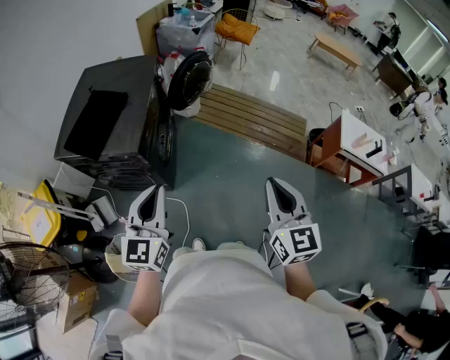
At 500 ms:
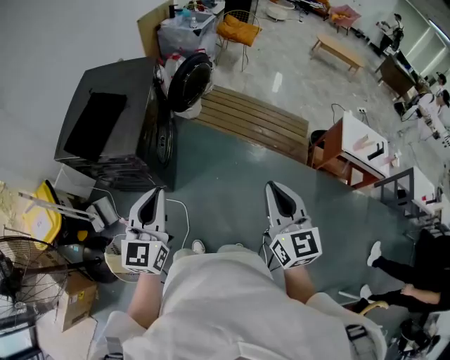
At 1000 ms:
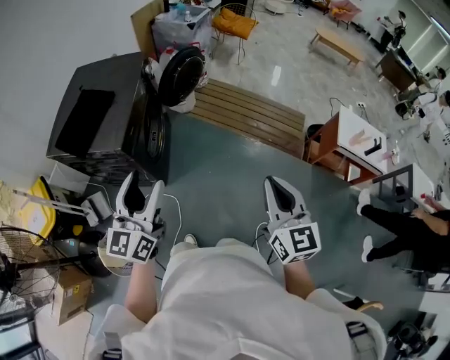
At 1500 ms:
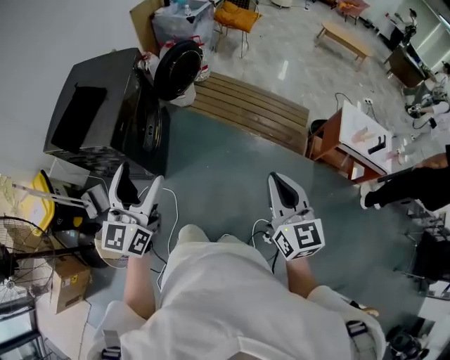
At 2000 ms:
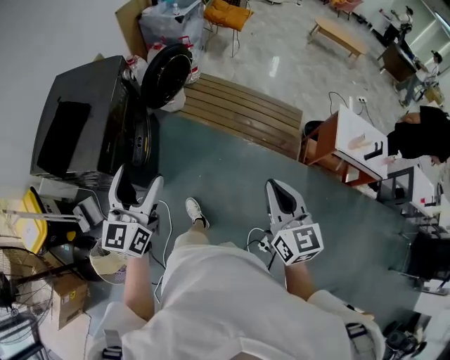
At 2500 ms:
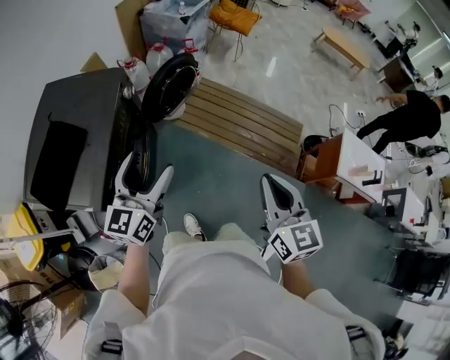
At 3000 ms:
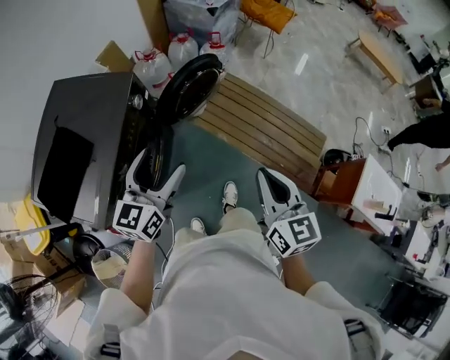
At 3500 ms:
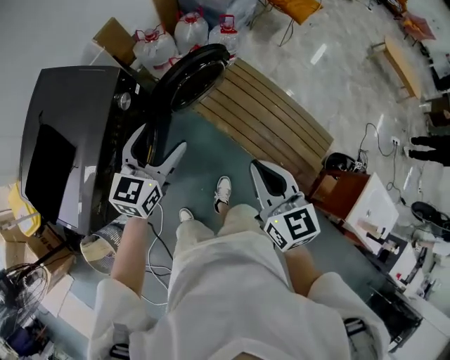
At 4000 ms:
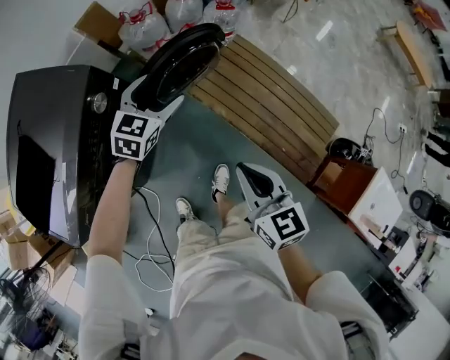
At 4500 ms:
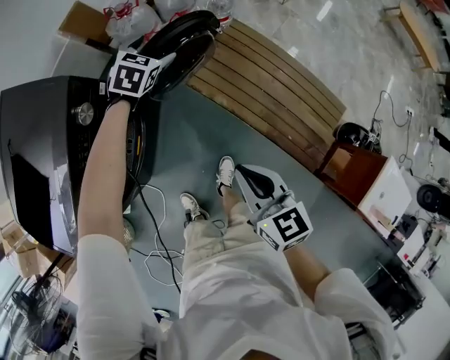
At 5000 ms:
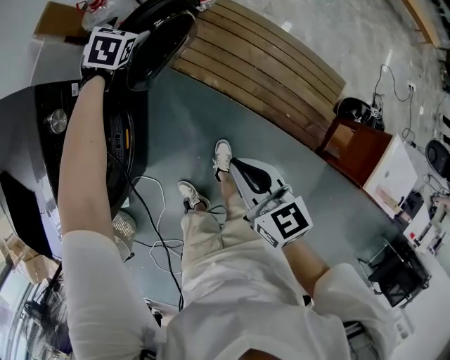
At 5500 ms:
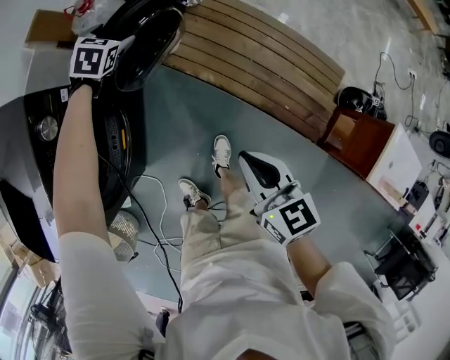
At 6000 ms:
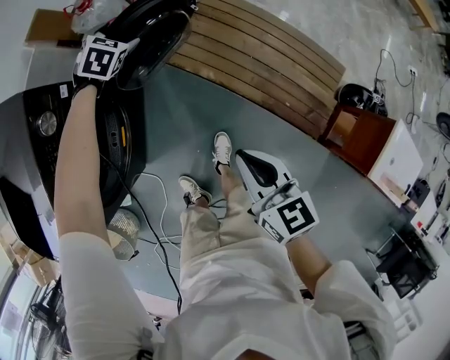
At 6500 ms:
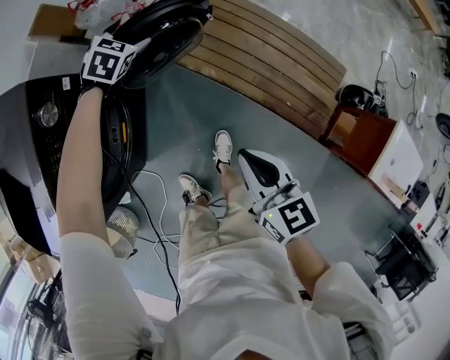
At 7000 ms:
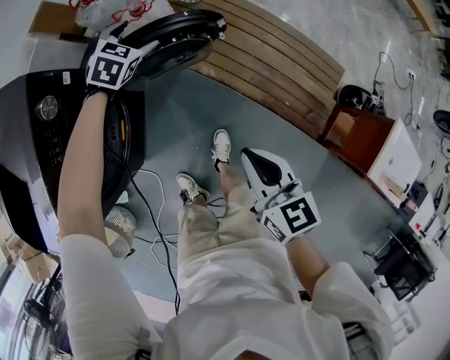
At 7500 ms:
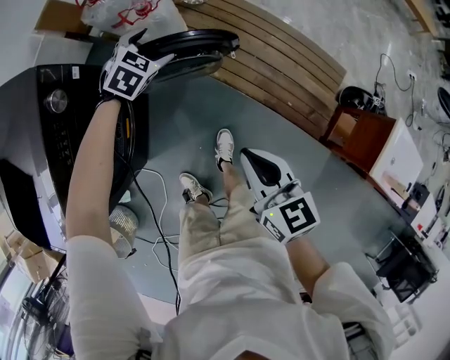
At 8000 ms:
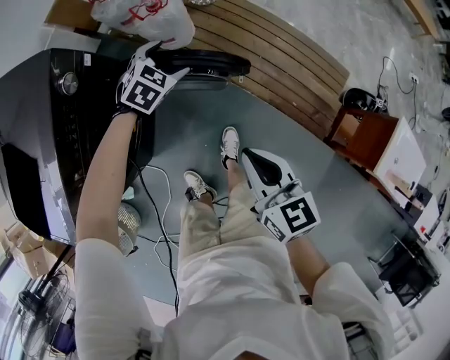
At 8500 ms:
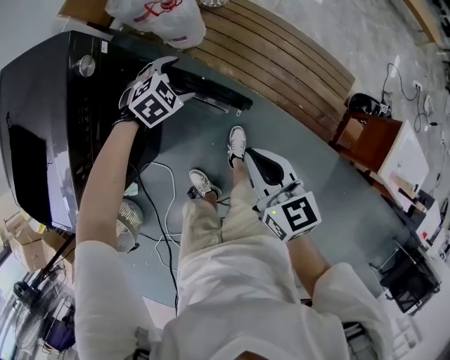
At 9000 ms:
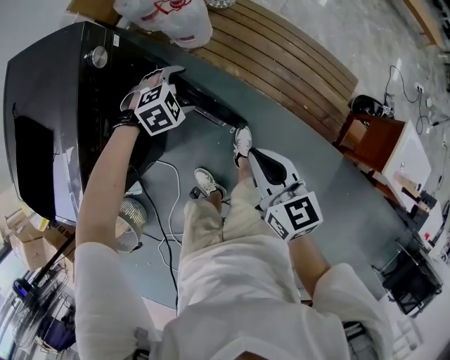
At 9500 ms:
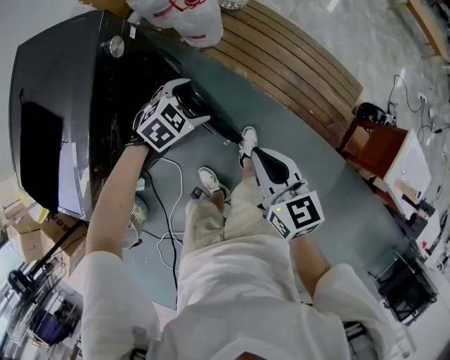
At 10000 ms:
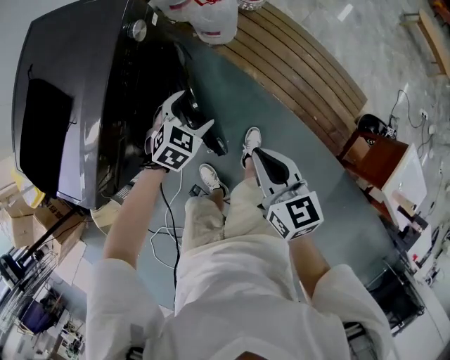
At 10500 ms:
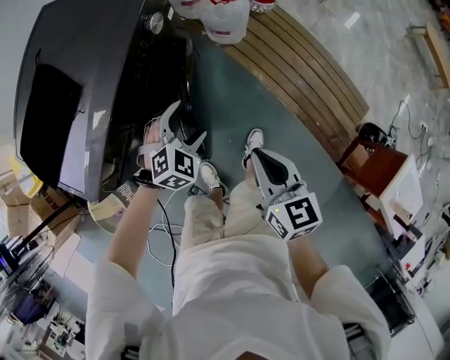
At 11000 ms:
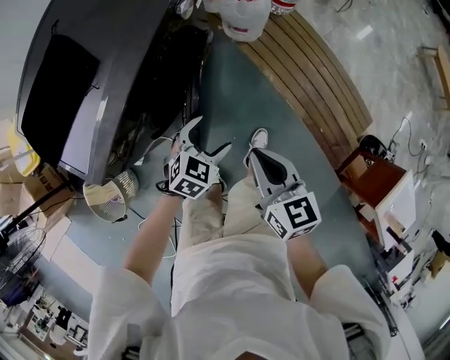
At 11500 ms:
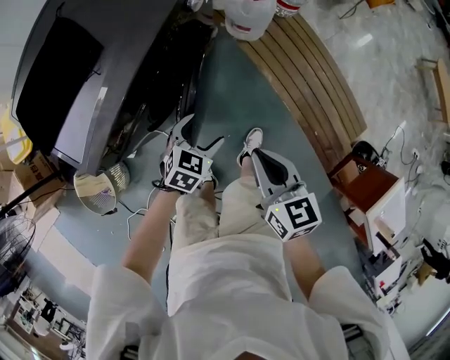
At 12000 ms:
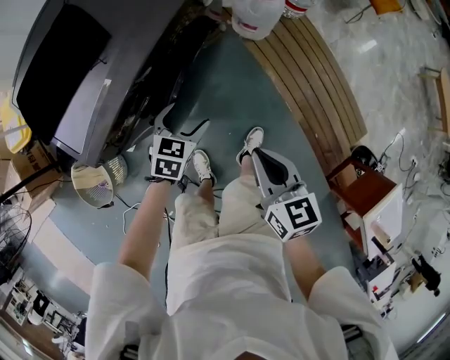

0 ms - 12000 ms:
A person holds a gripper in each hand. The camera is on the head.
0 ms - 2000 ms: The left gripper shifts about 20 cm forward and to the right, and opens its fingers; the right gripper heads to the right and forward, covering some 20 cm.
2000 ms - 4000 ms: The two grippers travel together, forward, roughly 60 cm. The right gripper rotates approximately 30 degrees, while the left gripper points its fingers some 30 degrees further downward.
4000 ms - 6000 ms: The right gripper travels downward and to the right by about 10 cm; the left gripper is displaced downward and forward by about 20 cm, and rotates approximately 30 degrees.
6000 ms - 8000 ms: The left gripper is displaced backward by about 15 cm. Meanwhile the right gripper heads backward, covering about 5 cm.
8000 ms - 10000 ms: The right gripper travels to the left and backward by roughly 15 cm, while the left gripper is displaced backward by about 20 cm.
10000 ms - 12000 ms: The left gripper travels to the left and backward by some 15 cm, and swivels roughly 40 degrees. The right gripper heads to the left, covering some 10 cm.

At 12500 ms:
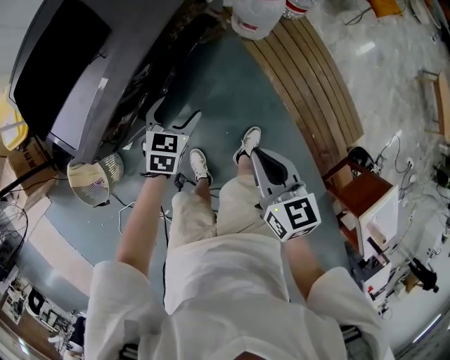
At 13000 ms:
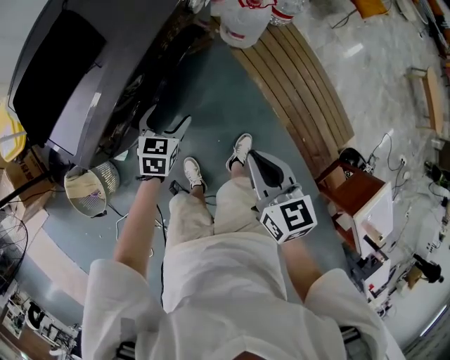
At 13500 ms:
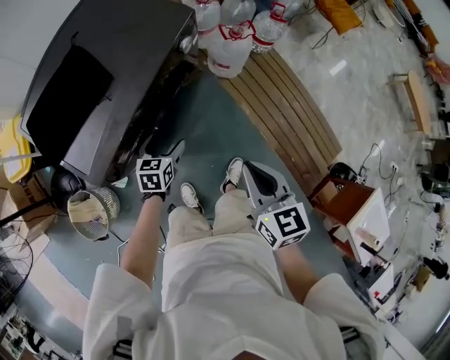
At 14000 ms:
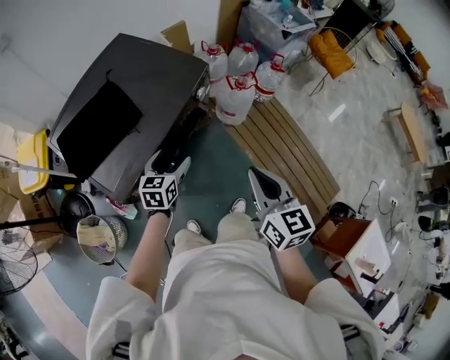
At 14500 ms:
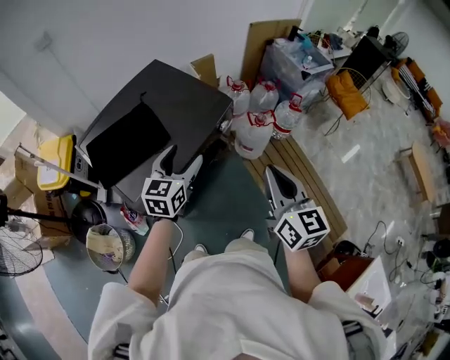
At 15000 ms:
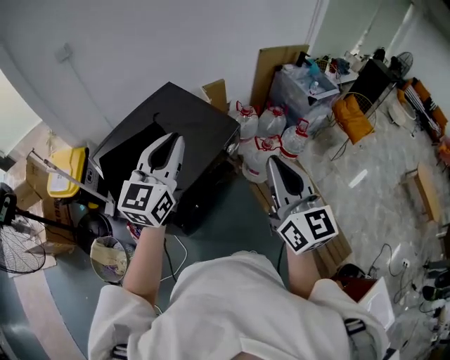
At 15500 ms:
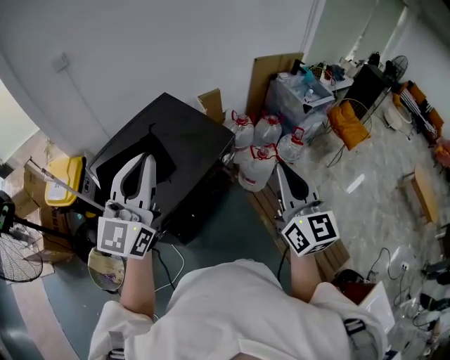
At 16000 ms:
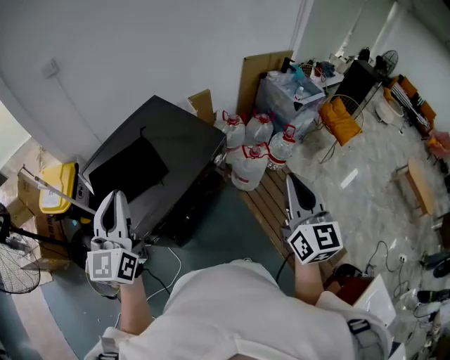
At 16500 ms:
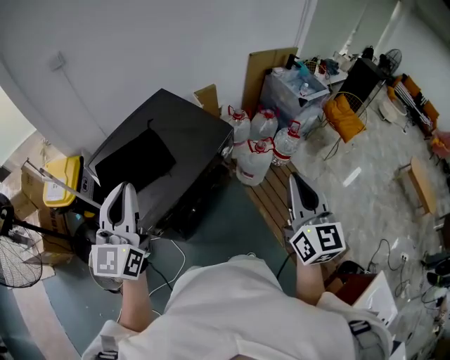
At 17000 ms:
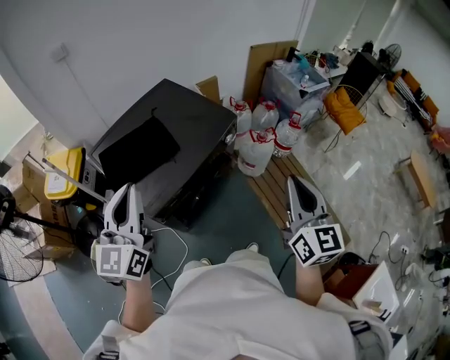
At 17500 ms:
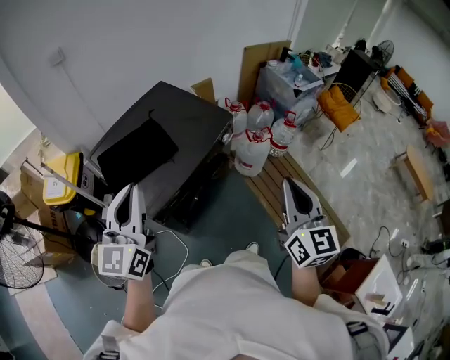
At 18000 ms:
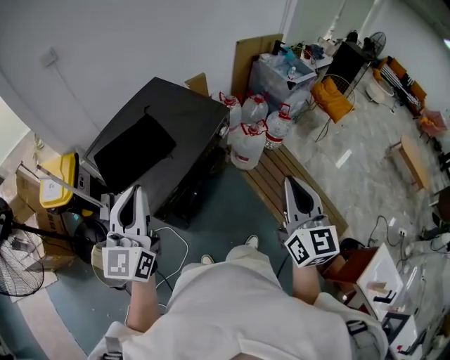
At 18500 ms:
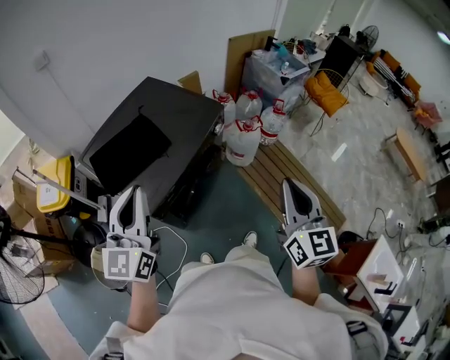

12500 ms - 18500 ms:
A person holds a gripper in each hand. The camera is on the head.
12500 ms - 14500 ms: The grippers both shift upward by roughly 30 cm. The left gripper changes its angle by approximately 30 degrees. Meanwhile the right gripper changes its angle by about 20 degrees.
14500 ms - 16500 ms: The left gripper heads upward, to the left and backward, covering roughly 25 cm, turns by roughly 30 degrees, and closes its fingers; the right gripper goes approximately 10 cm upward.
16500 ms - 18500 ms: The left gripper shifts roughly 5 cm backward. Meanwhile the right gripper shifts roughly 10 cm backward.

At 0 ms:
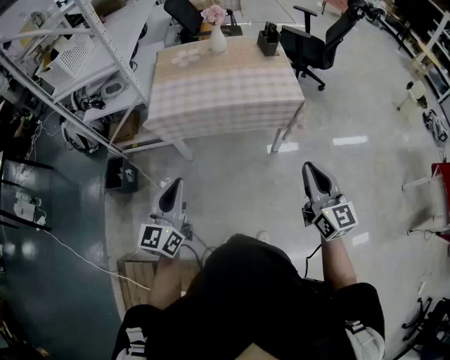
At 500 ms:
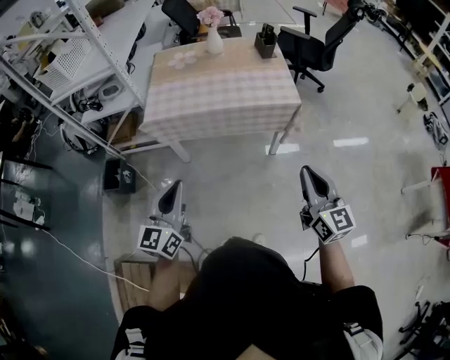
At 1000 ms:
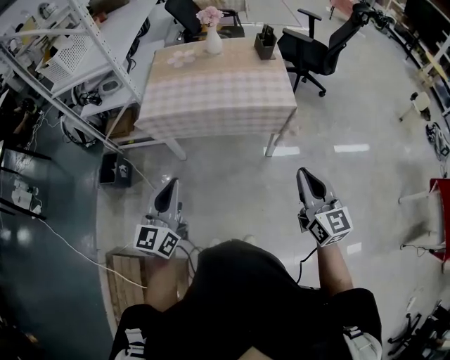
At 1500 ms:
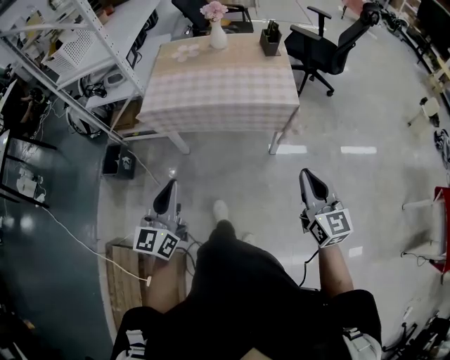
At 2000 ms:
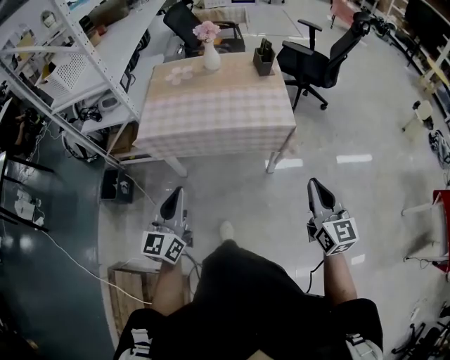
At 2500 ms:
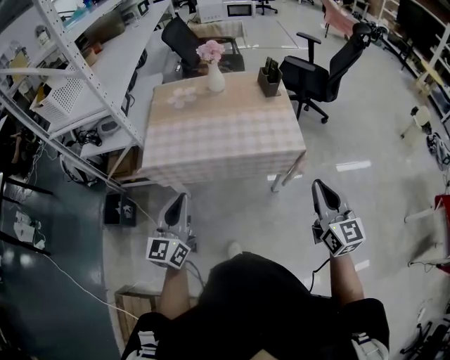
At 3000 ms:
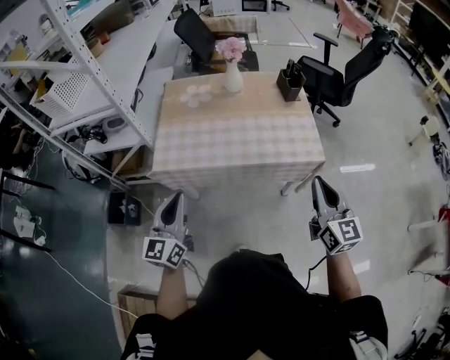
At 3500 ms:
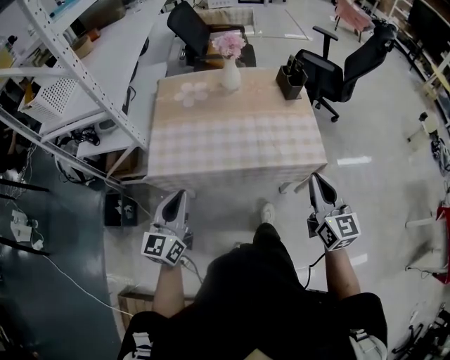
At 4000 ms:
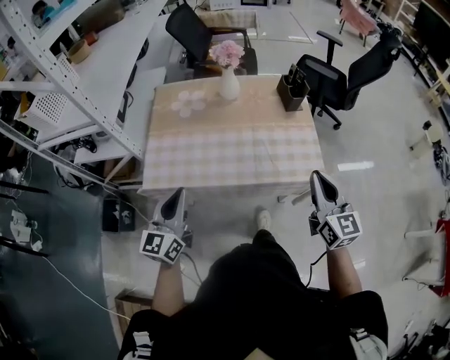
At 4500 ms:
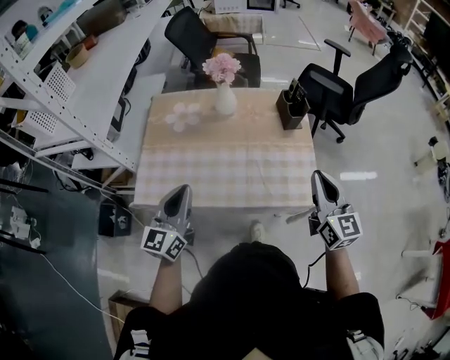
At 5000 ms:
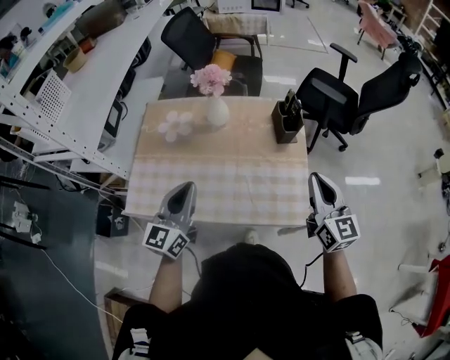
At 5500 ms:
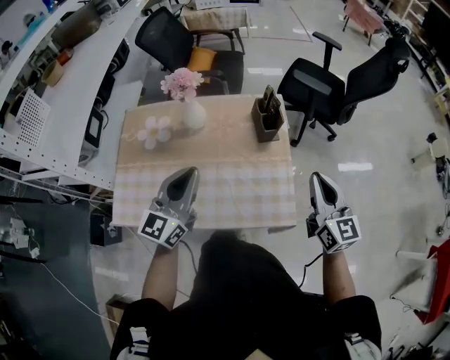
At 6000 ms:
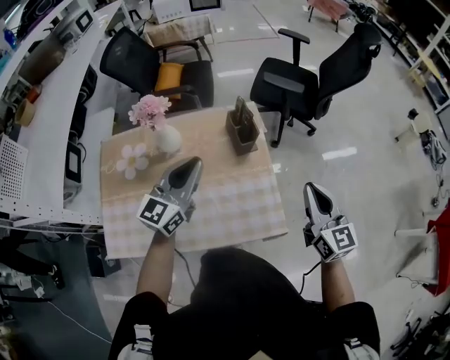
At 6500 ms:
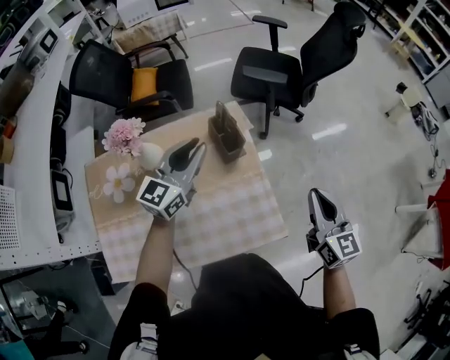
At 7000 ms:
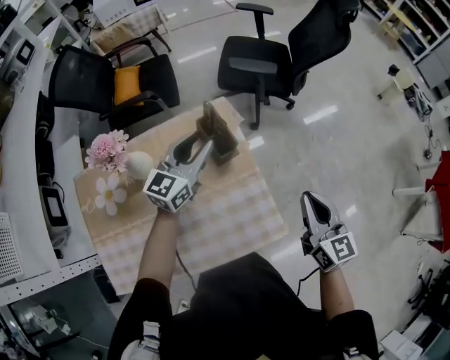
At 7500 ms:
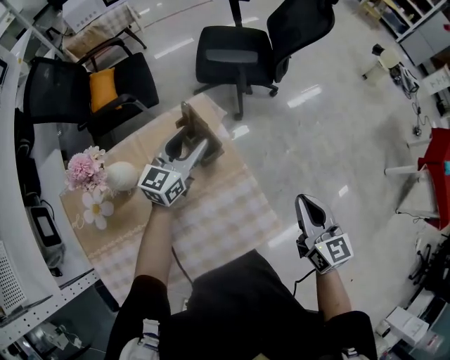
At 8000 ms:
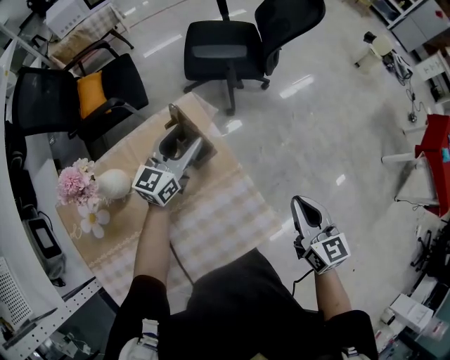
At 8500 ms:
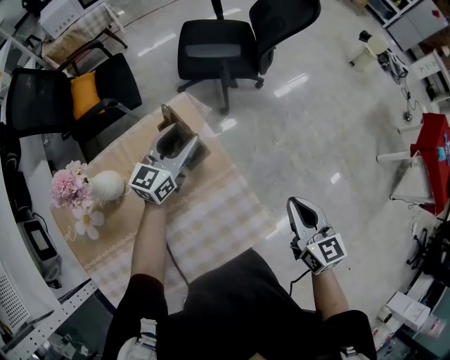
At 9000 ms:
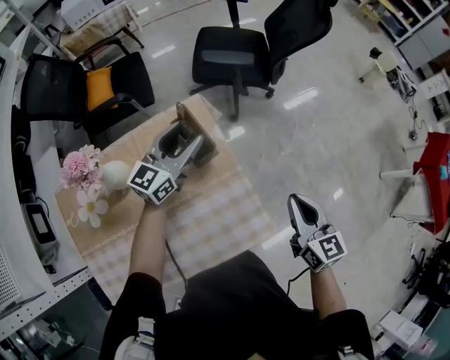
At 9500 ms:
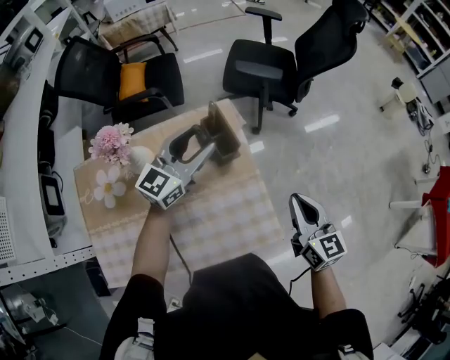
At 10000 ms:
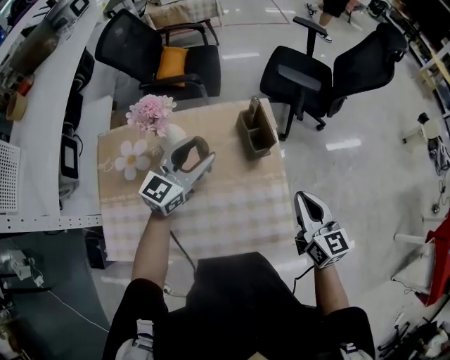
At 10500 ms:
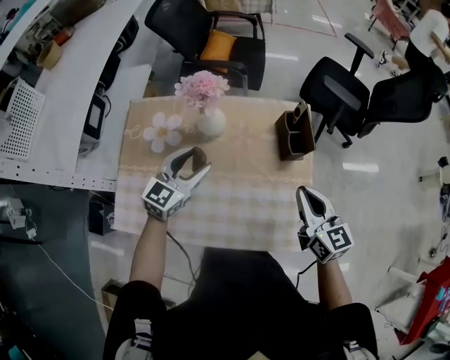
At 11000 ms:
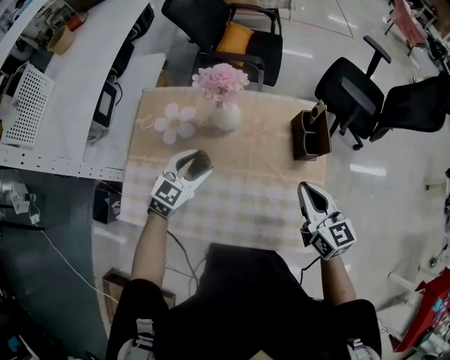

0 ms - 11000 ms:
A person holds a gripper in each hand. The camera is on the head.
0 ms - 2000 ms: The grippers both shift to the right and forward by about 15 cm.
2000 ms - 3500 ms: The two grippers go approximately 30 cm forward and to the left.
3500 ms - 5500 ms: The grippers both shift forward and to the right by roughly 40 cm.
5500 ms - 7500 ms: The left gripper moves approximately 40 cm, turns by roughly 30 degrees, and opens its fingers. The right gripper shifts by some 10 cm, and rotates roughly 30 degrees.
7500 ms - 9000 ms: The grippers make only small movements.
9000 ms - 11000 ms: The left gripper ends up roughly 35 cm from where it was, and swivels about 40 degrees, while the right gripper changes place by roughly 25 cm, and changes its angle by roughly 40 degrees.
